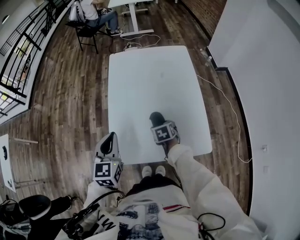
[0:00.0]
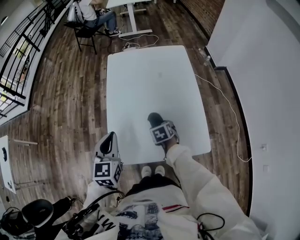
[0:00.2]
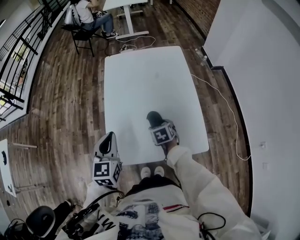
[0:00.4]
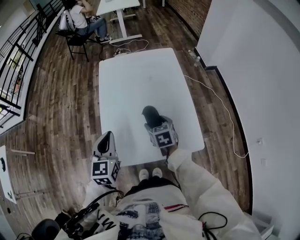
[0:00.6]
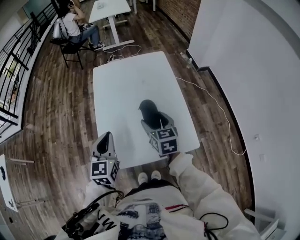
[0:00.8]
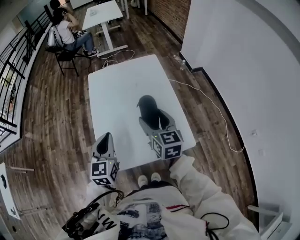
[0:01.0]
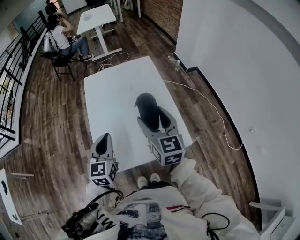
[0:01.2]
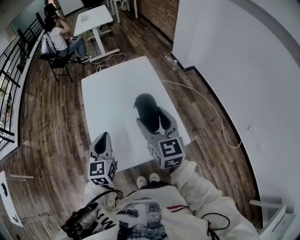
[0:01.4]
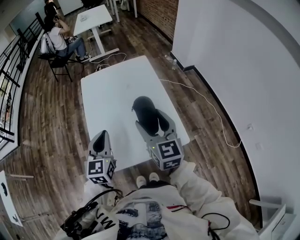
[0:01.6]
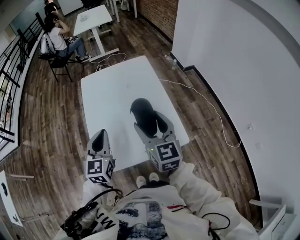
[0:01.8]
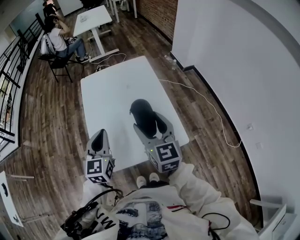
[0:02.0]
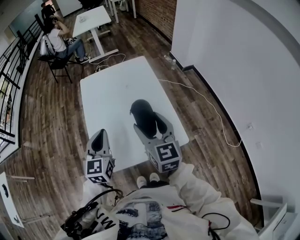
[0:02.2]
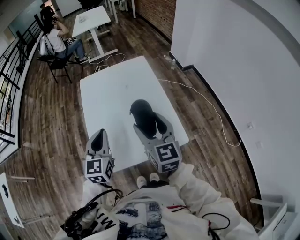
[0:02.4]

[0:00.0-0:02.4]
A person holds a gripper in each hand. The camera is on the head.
0:00.0 to 0:01.2: The left gripper travels to the right by about 10 cm. Meanwhile the right gripper moves upward, about 30 cm, and angles its fingers upward, by approximately 50 degrees.
0:01.2 to 0:02.4: The grippers move only a little.

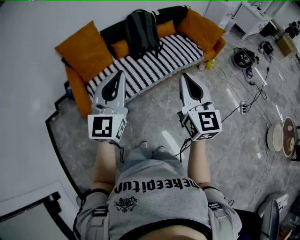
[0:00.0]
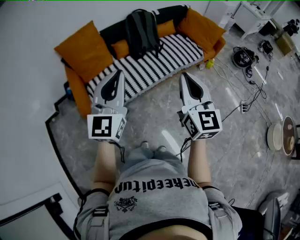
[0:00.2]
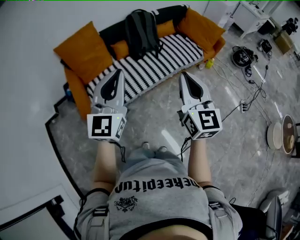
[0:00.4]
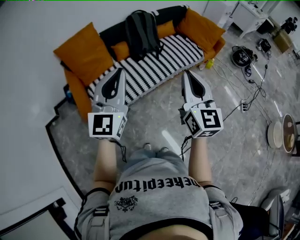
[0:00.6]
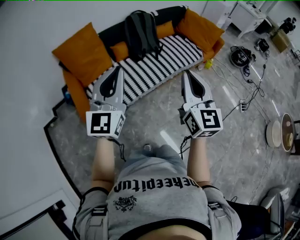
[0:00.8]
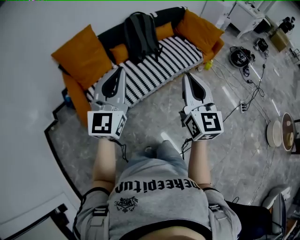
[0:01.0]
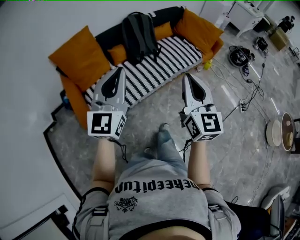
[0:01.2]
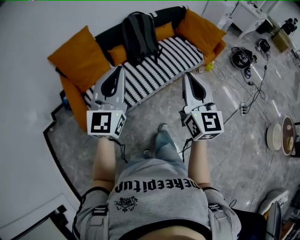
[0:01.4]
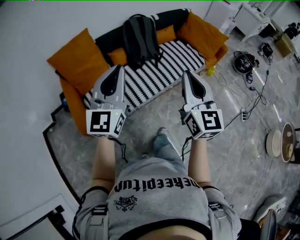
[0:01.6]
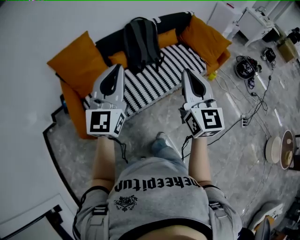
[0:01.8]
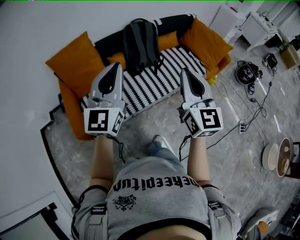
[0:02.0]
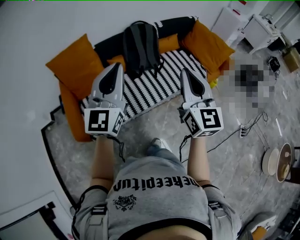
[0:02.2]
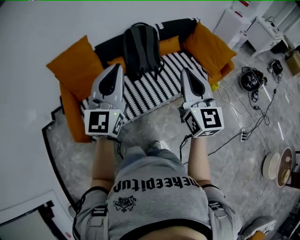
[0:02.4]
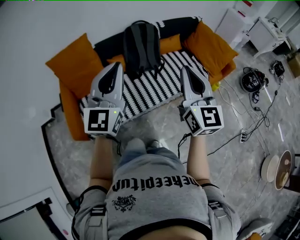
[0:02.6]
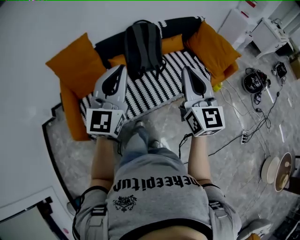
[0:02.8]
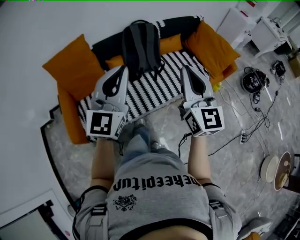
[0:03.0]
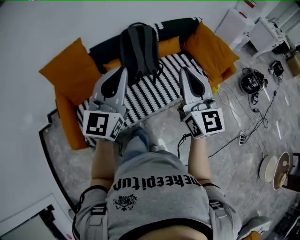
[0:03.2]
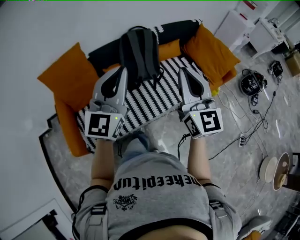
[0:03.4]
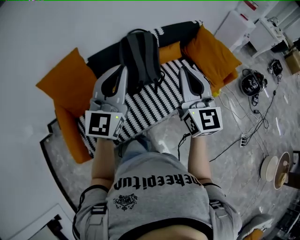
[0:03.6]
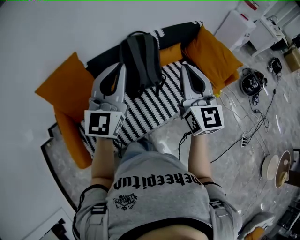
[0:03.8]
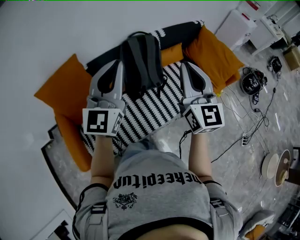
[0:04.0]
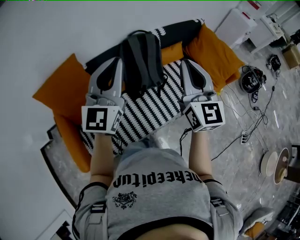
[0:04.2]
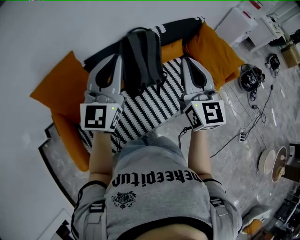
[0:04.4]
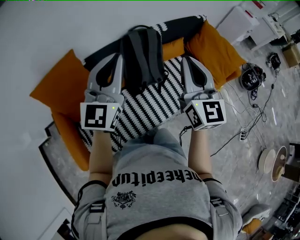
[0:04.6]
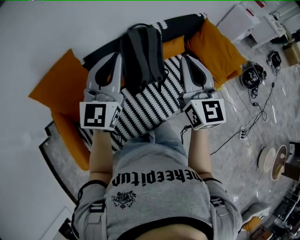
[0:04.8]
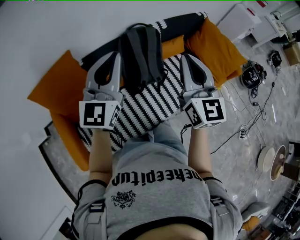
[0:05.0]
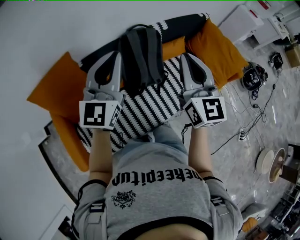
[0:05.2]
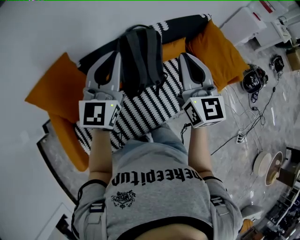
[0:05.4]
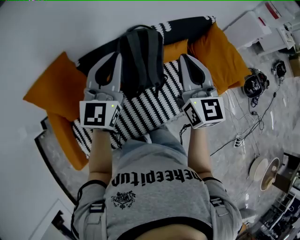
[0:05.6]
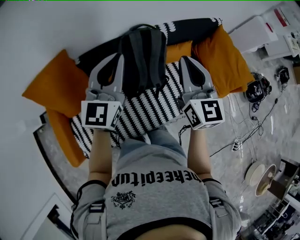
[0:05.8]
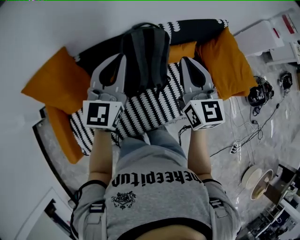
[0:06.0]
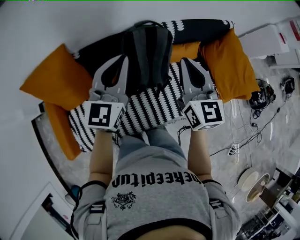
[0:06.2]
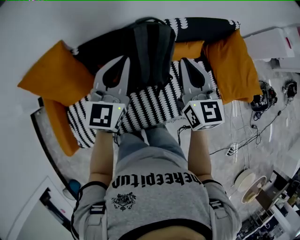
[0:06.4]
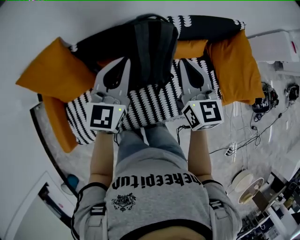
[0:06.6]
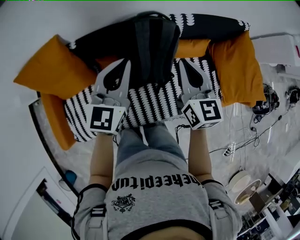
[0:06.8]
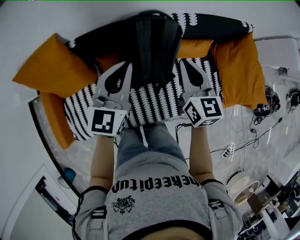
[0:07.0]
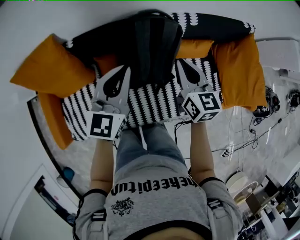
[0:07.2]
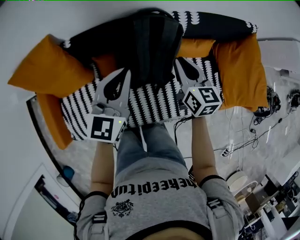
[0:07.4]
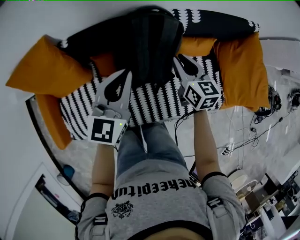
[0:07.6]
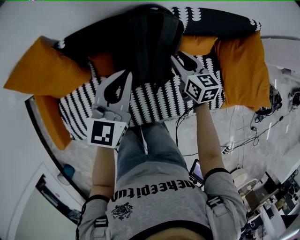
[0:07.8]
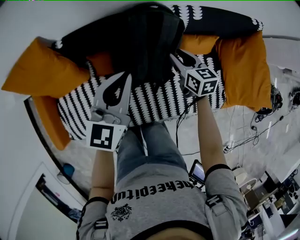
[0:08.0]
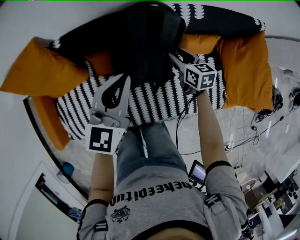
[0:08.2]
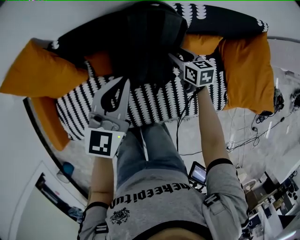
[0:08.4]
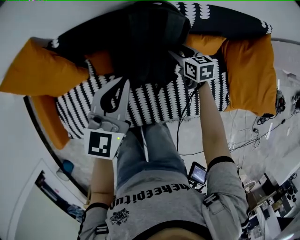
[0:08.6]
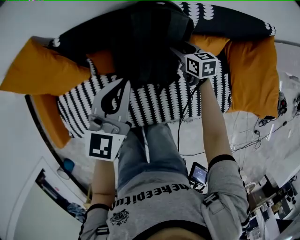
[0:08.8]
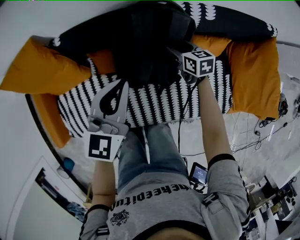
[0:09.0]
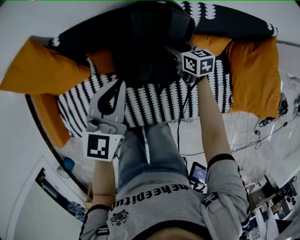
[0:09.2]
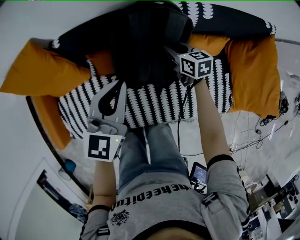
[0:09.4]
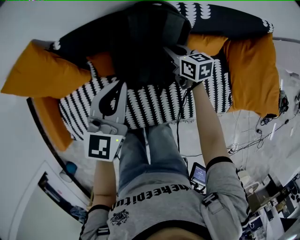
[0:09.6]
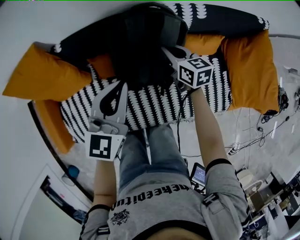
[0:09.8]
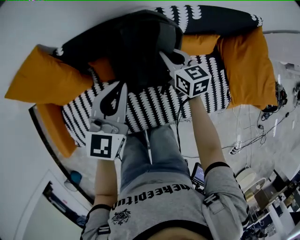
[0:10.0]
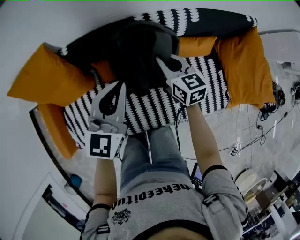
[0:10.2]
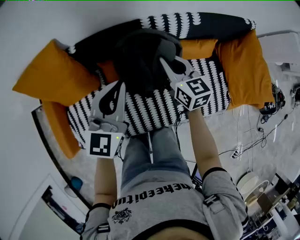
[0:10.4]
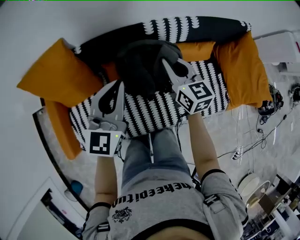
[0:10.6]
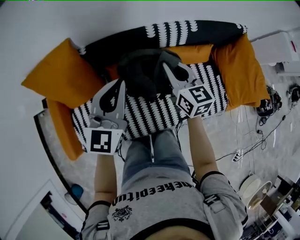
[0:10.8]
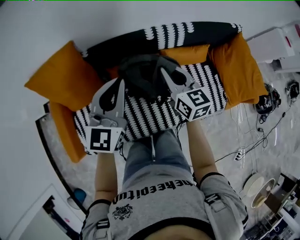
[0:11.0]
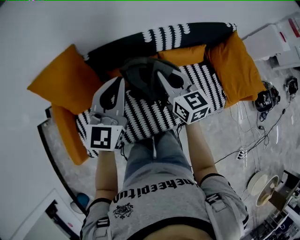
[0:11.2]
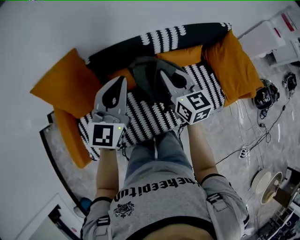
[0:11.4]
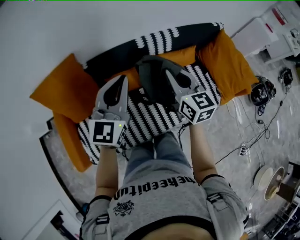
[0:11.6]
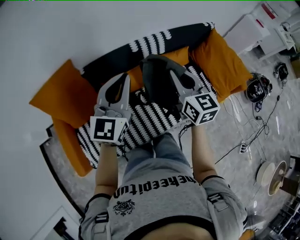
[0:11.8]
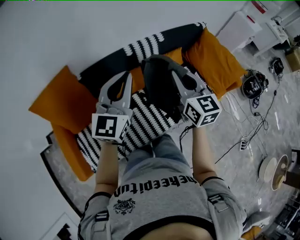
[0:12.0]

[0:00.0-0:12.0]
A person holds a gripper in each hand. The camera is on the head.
0:00.0 to 0:01.6: Both grippers travel together forward, some 15 cm.
0:01.6 to 0:03.0: The left gripper moves forward and to the right, about 15 cm; the right gripper moves forward, roughly 20 cm.
0:03.0 to 0:04.4: The grippers both shift forward and to the left by some 25 cm.
0:04.4 to 0:06.0: The two grippers go about 15 cm forward and downward.
0:06.0 to 0:07.6: The left gripper goes roughly 15 cm downward, while the right gripper shifts some 25 cm downward and forward, turns by approximately 30 degrees, and opens up.
0:07.6 to 0:09.0: The left gripper shifts by roughly 5 cm; the right gripper shifts about 20 cm downward and forward, changes its angle by approximately 20 degrees, and opens up.
0:09.0 to 0:10.4: The left gripper goes approximately 5 cm upward; the right gripper shifts approximately 20 cm upward and backward, changes its angle by approximately 20 degrees, and closes its fingers.
0:10.4 to 0:12.0: The left gripper shifts some 15 cm upward and backward, and turns by roughly 20 degrees. The right gripper is displaced upward and backward by approximately 25 cm, and swivels roughly 30 degrees.

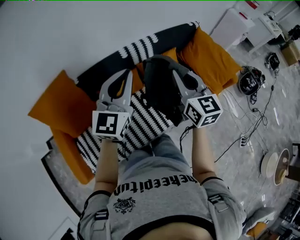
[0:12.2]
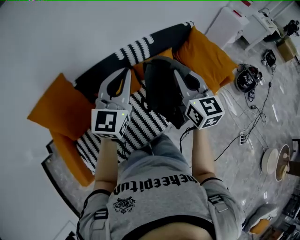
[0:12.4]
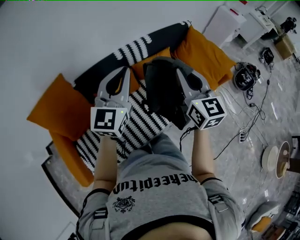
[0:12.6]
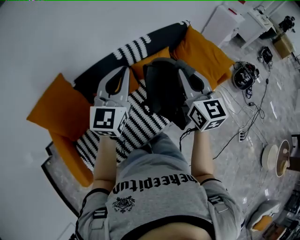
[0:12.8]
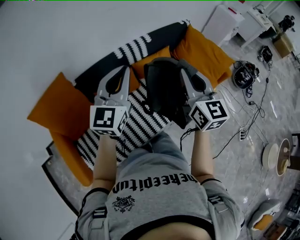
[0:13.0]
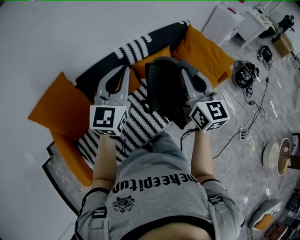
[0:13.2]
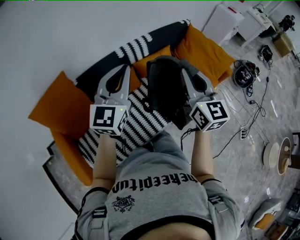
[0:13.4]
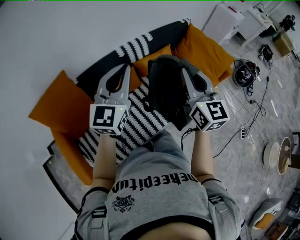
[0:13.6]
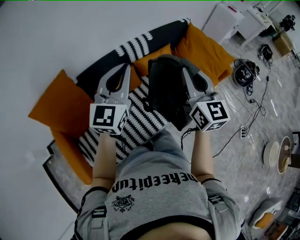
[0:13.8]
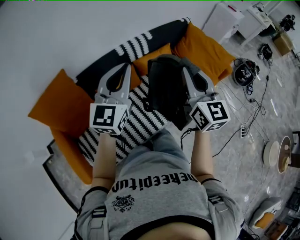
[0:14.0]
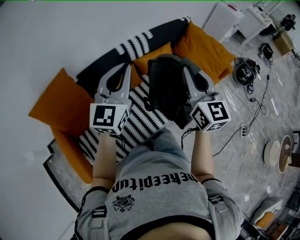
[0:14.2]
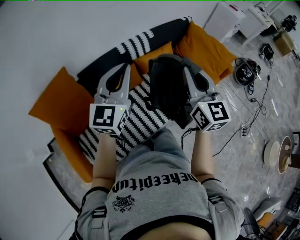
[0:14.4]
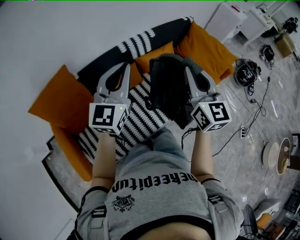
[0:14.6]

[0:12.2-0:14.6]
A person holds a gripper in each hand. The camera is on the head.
0:12.2 to 0:13.4: The right gripper is displaced backward by some 5 cm.
0:13.4 to 0:14.6: The grippers stay close to where they were, moving slightly.

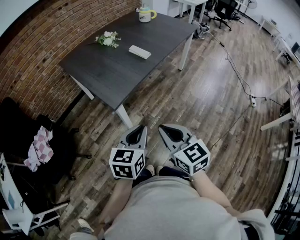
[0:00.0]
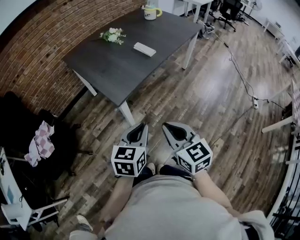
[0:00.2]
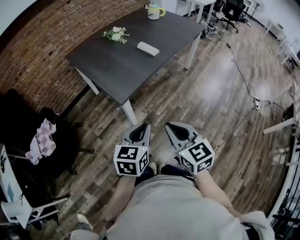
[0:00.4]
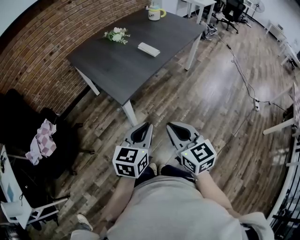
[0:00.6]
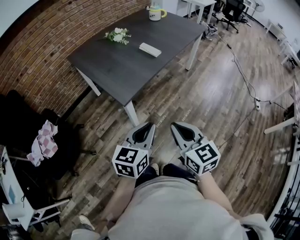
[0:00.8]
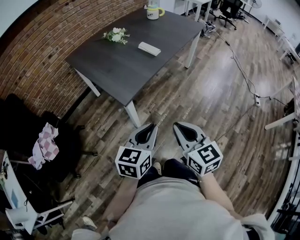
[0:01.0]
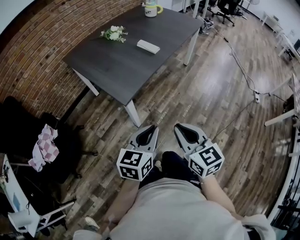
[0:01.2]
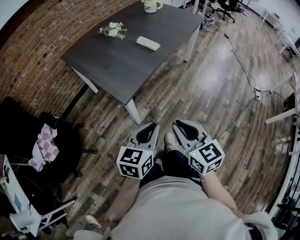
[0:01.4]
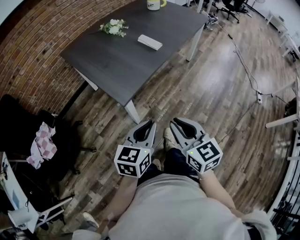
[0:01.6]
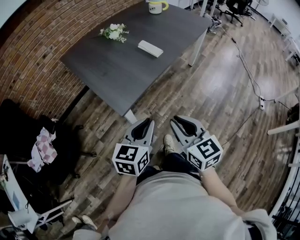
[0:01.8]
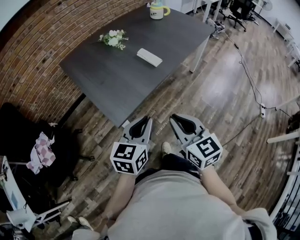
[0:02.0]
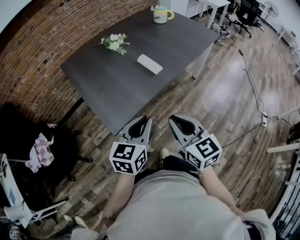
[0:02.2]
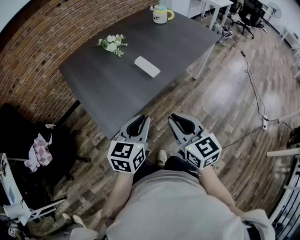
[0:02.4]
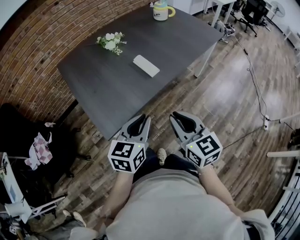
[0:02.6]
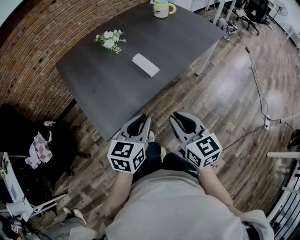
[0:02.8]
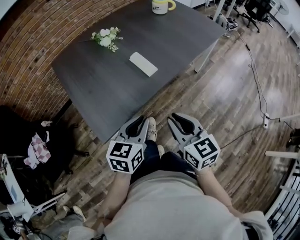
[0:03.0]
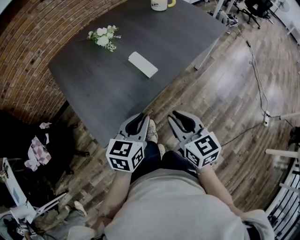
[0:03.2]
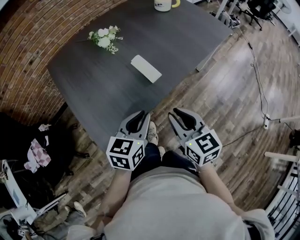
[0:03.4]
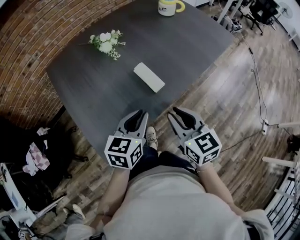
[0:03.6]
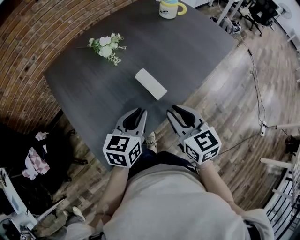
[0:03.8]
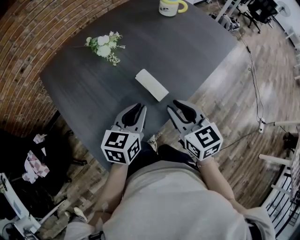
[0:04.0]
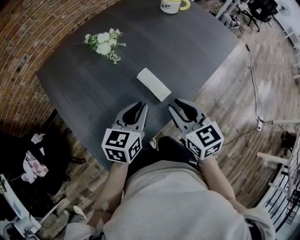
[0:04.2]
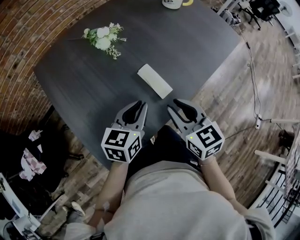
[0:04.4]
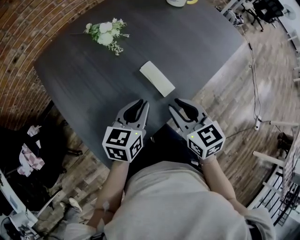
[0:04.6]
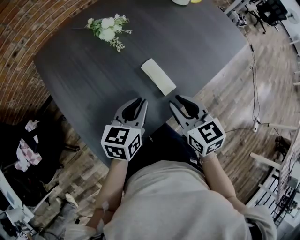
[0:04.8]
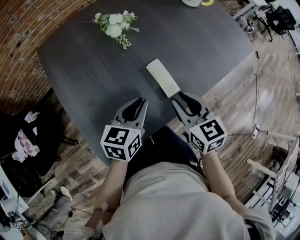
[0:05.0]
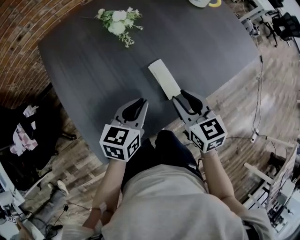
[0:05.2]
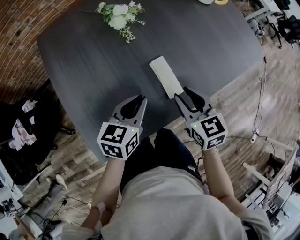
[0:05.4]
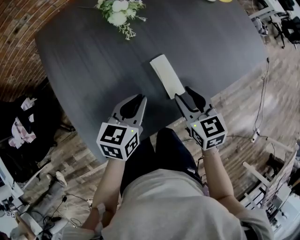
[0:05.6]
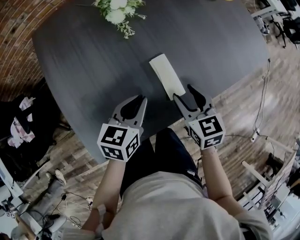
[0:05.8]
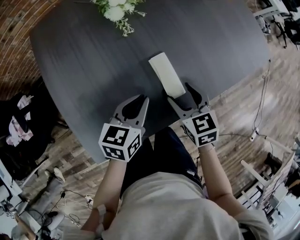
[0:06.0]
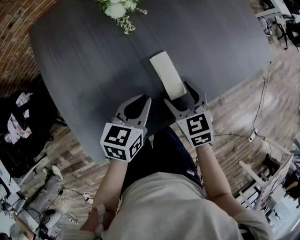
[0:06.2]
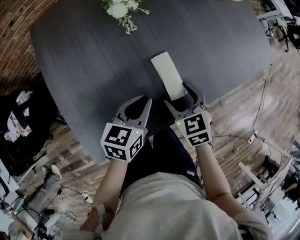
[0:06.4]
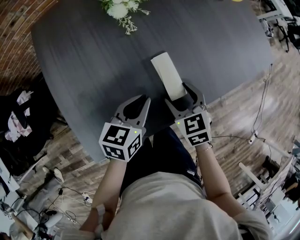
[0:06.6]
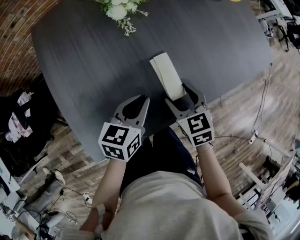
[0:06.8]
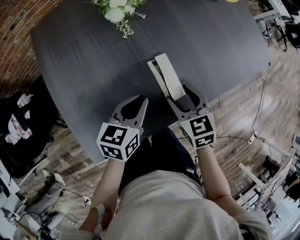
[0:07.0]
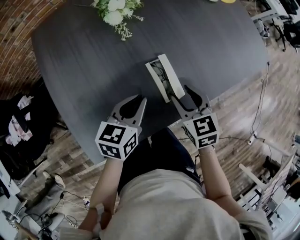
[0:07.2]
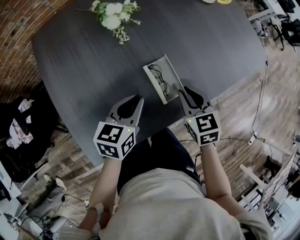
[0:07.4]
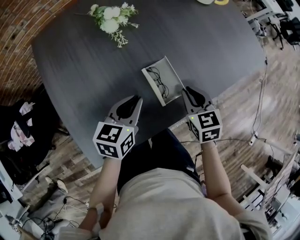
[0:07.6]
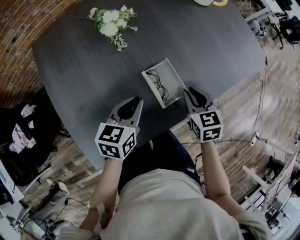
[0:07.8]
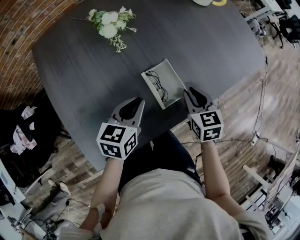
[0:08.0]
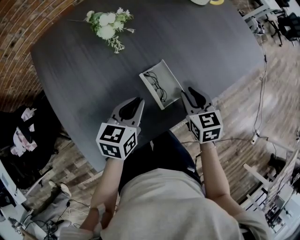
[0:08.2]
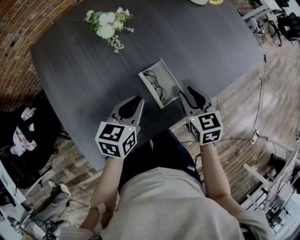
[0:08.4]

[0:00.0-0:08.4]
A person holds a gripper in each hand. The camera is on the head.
0:00.0 to 0:01.4: There are only small adjustments of the grippers.
0:01.4 to 0:02.8: Both grippers move forward and to the right, approximately 30 cm.
0:02.8 to 0:04.2: Both grippers travel together forward, approximately 25 cm.
0:04.2 to 0:05.6: The left gripper heads downward, covering approximately 5 cm; the right gripper shifts about 10 cm downward and forward.
0:05.6 to 0:07.0: The grippers make only small movements.
0:07.0 to 0:08.4: The right gripper is displaced to the right by about 5 cm, and closes up.
